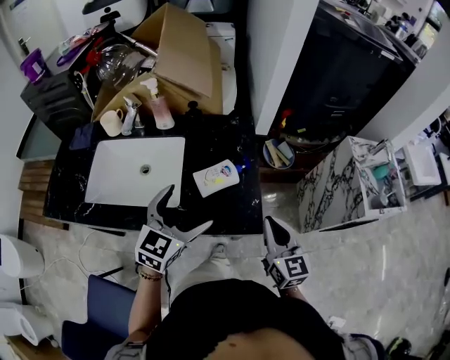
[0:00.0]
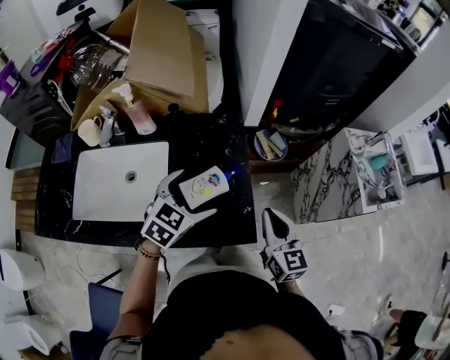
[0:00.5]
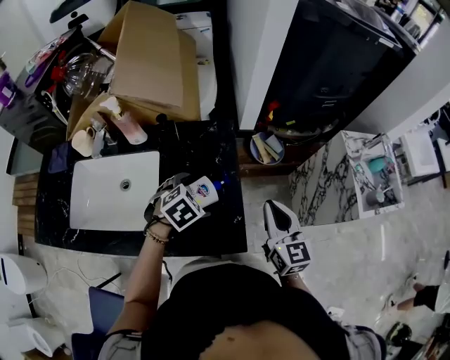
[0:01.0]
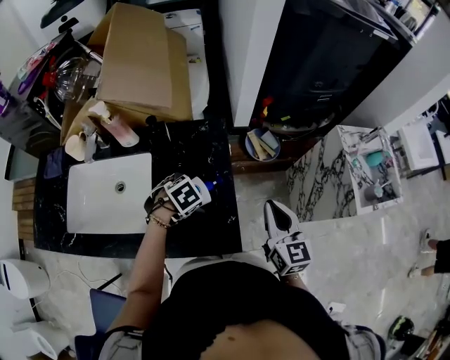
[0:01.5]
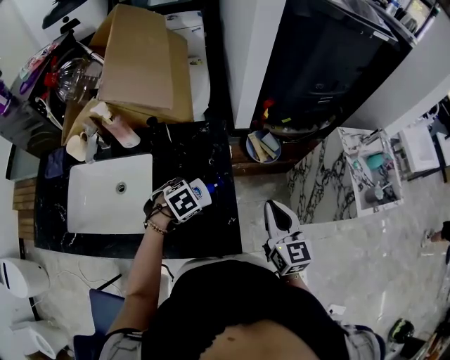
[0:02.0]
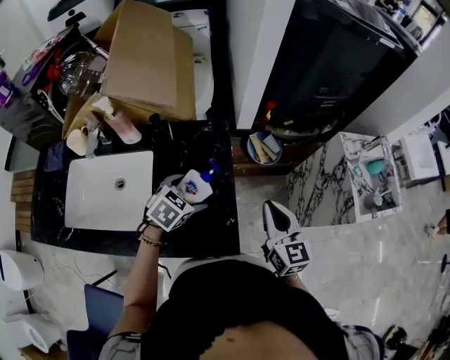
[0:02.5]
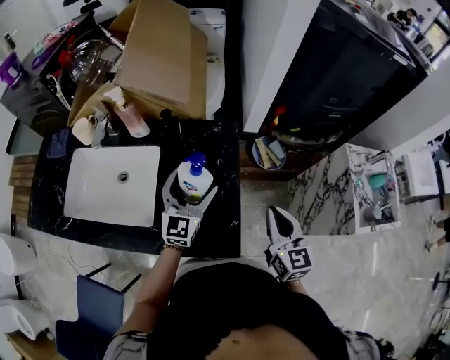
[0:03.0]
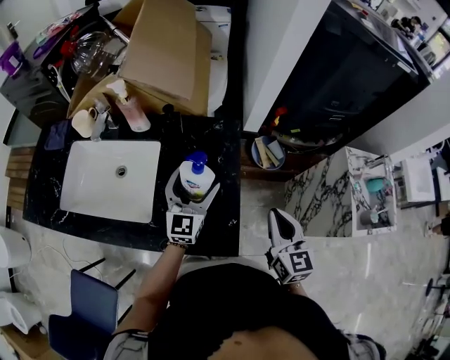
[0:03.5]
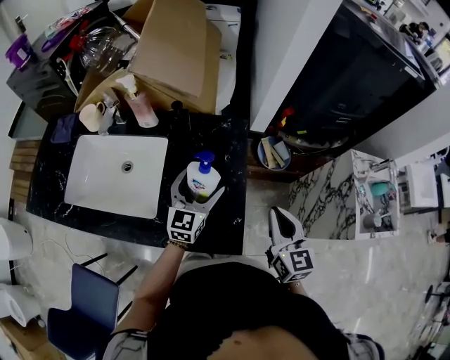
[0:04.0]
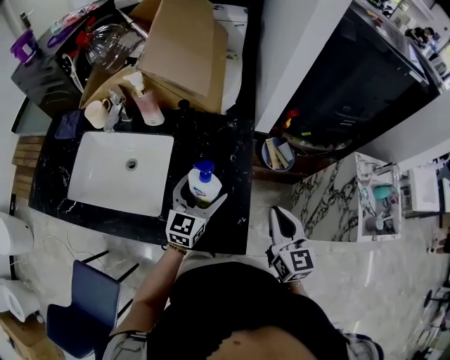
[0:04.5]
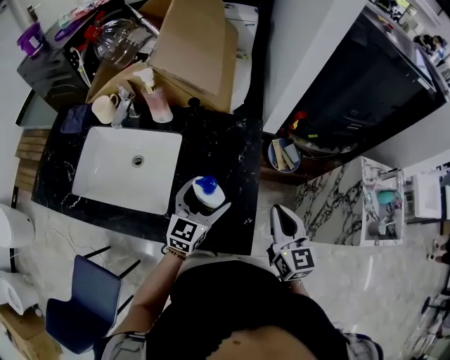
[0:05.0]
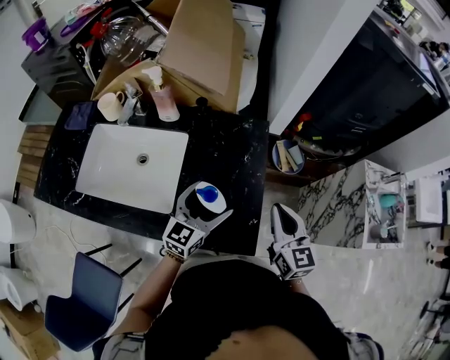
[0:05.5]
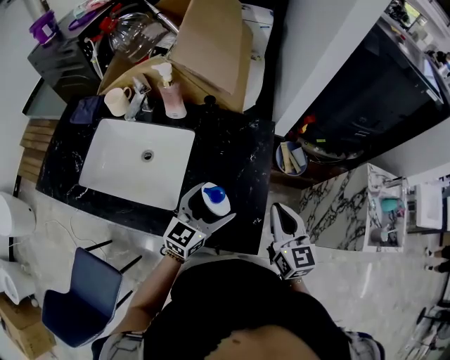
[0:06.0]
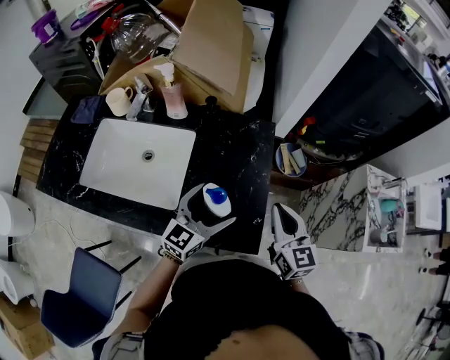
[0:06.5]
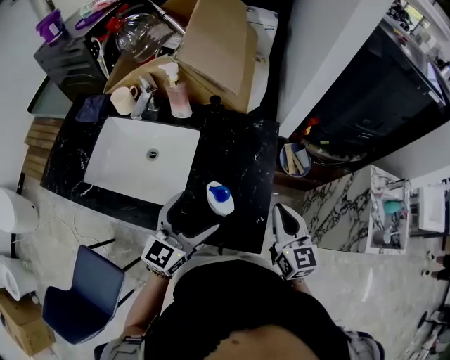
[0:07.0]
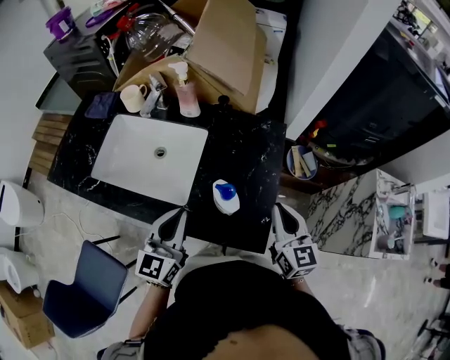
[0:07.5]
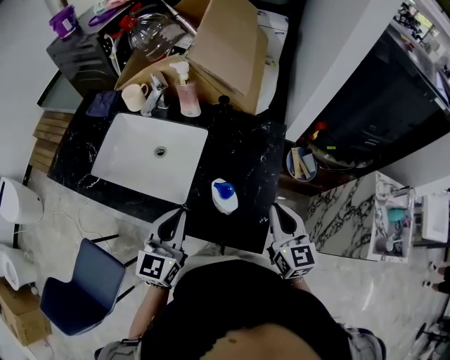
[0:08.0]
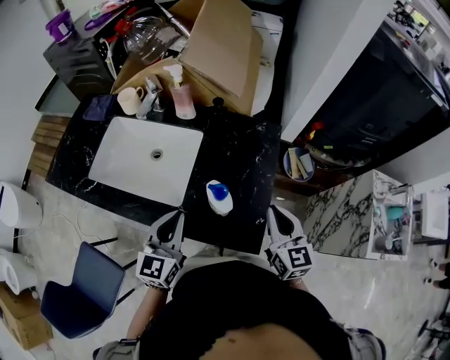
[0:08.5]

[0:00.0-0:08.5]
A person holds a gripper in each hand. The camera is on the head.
0:00.0 to 0:02.0: The left gripper is displaced downward by roughly 20 cm, and points its fingers about 60 degrees further downward; the right gripper moves approximately 15 cm.
0:02.0 to 0:04.0: The left gripper travels upward by roughly 10 cm, and points its fingers some 70 degrees further upward.
0:04.0 to 0:06.5: The right gripper heads to the left, covering roughly 5 cm. Meanwhile the left gripper heads backward, covering about 10 cm.
0:06.5 to 0:08.5: The left gripper heads to the left and backward, covering some 15 cm, changes its angle by some 30 degrees, and closes.

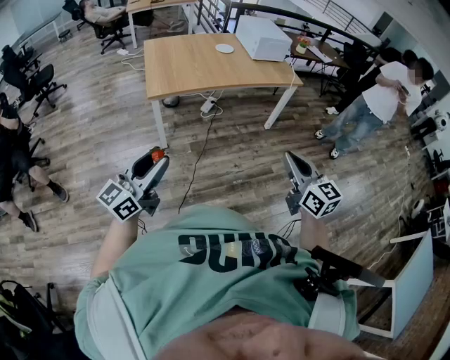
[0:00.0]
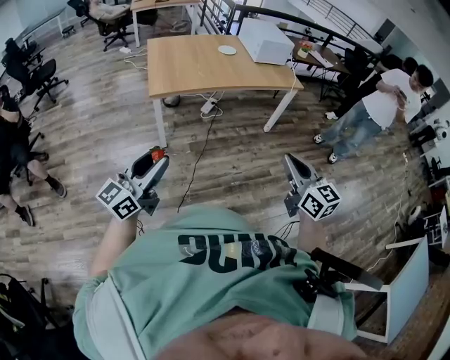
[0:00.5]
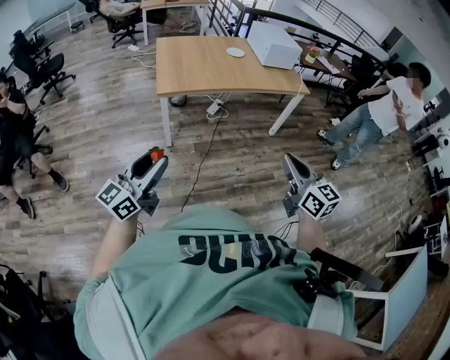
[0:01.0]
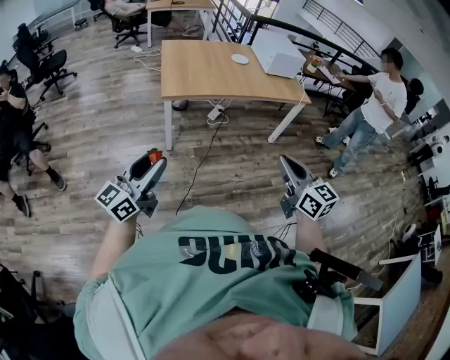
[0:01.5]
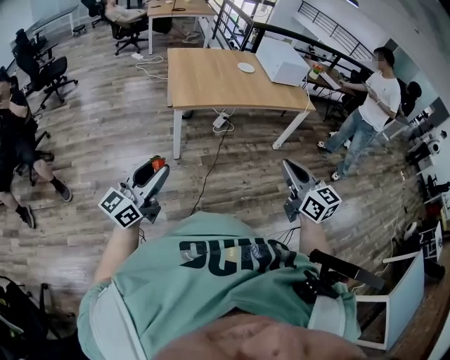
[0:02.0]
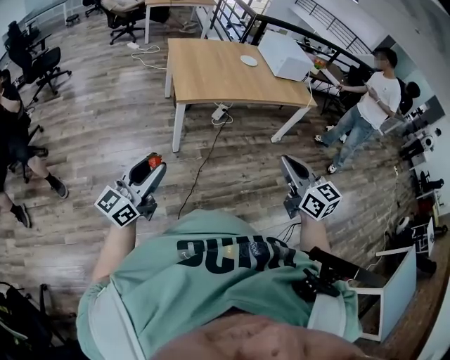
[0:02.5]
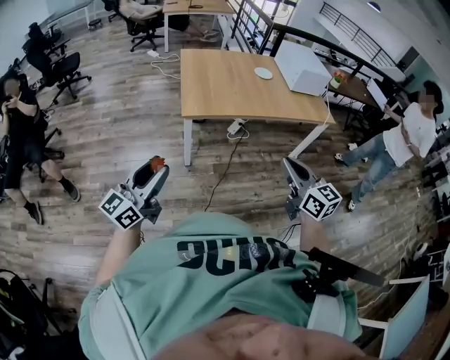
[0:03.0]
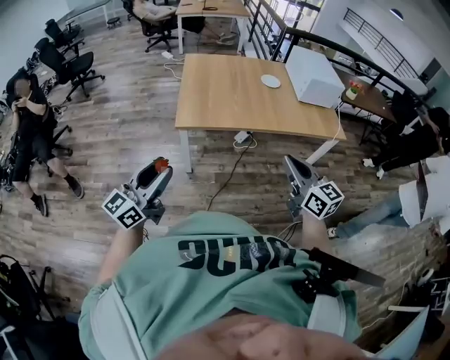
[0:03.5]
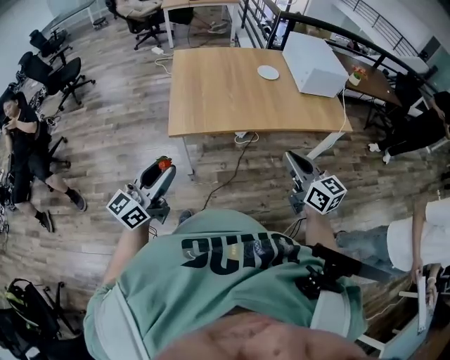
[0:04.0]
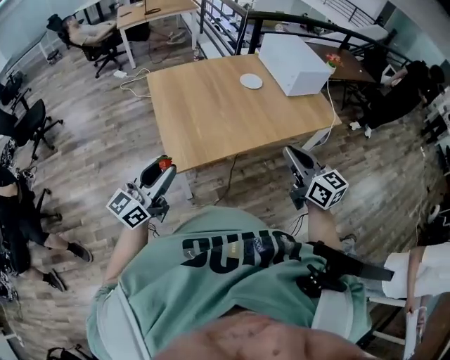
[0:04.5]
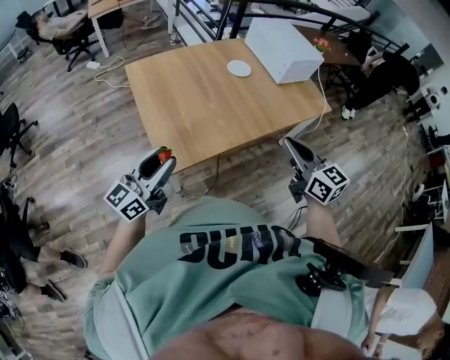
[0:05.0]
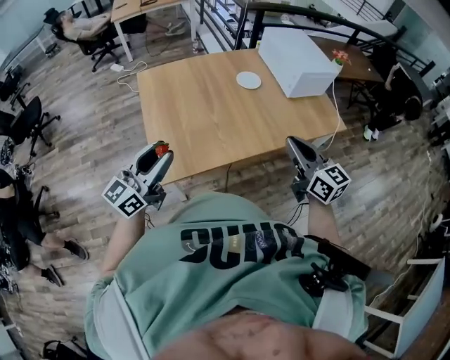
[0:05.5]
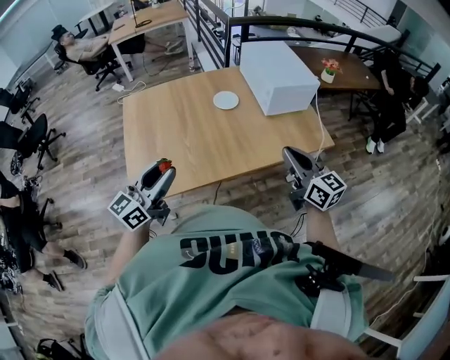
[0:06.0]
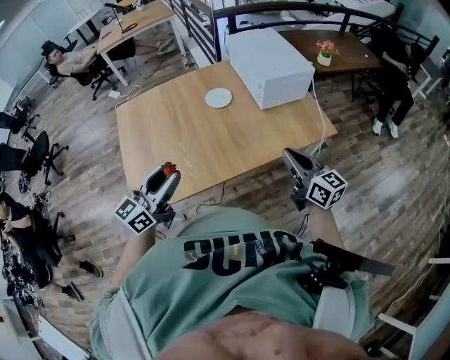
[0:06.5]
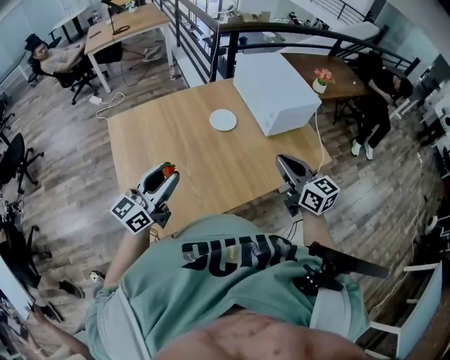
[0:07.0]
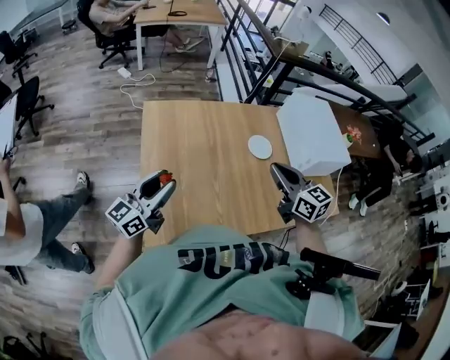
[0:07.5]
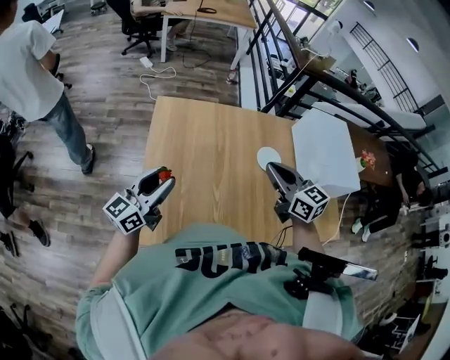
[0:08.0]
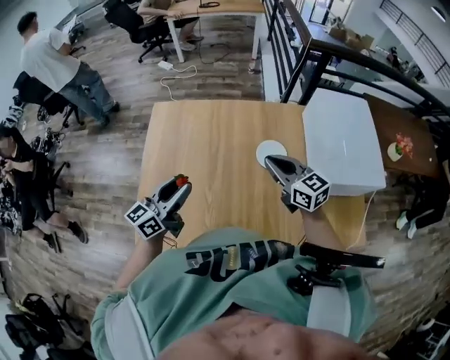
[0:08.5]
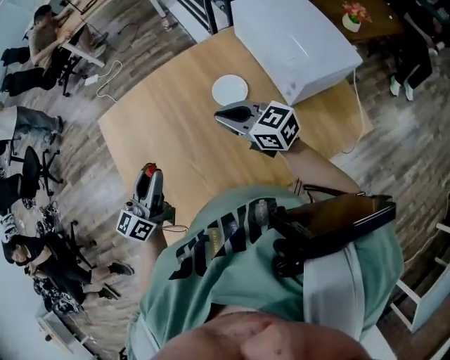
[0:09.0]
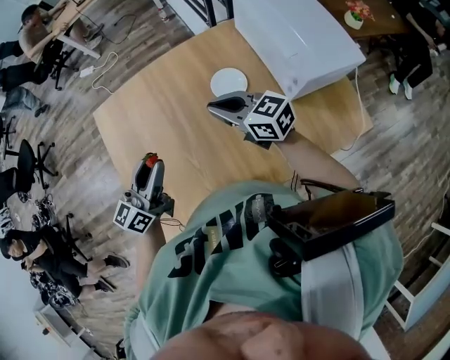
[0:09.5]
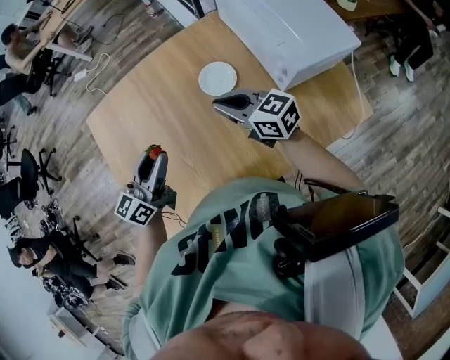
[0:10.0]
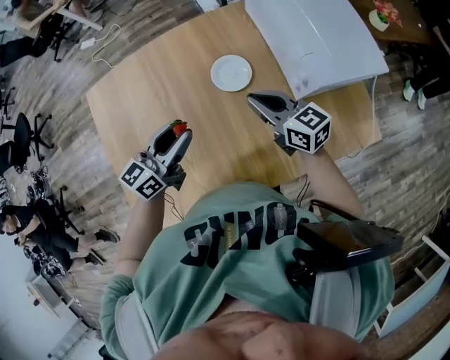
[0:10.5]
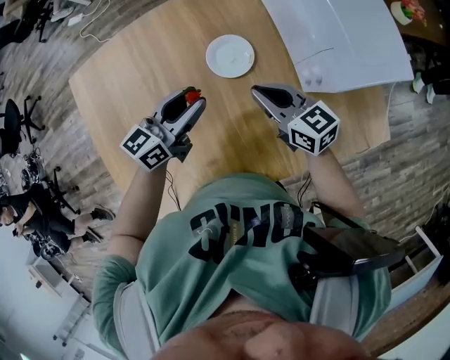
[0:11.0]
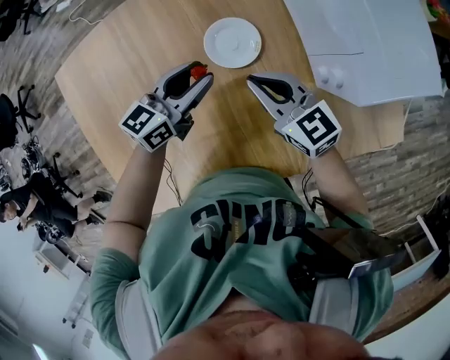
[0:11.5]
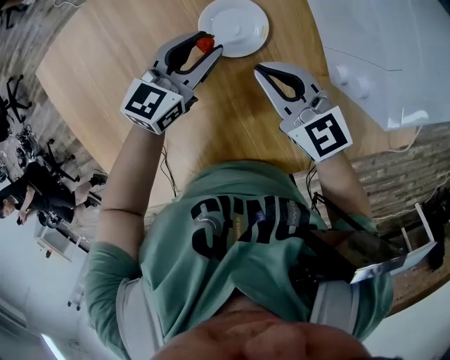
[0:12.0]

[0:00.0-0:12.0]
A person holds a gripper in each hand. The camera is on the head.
0:00.0 to 0:02.0: Both grippers travel together to the left, some 15 cm.
0:02.0 to 0:04.0: The grippers both shift forward by some 35 cm.
0:04.0 to 0:06.0: The right gripper is displaced forward and to the right by some 30 cm. Meanwhile the left gripper heads forward, covering some 35 cm.
0:06.0 to 0:08.0: The two grippers go about 40 cm to the left and forward. The right gripper turns by roughly 30 degrees.
0:08.0 to 0:10.0: The right gripper goes roughly 20 cm to the right and downward, while the left gripper travels to the right by about 25 cm.
0:10.0 to 0:12.0: The right gripper is displaced downward and forward by some 20 cm. Meanwhile the left gripper moves downward, forward and to the right, approximately 35 cm, and rotates about 30 degrees.

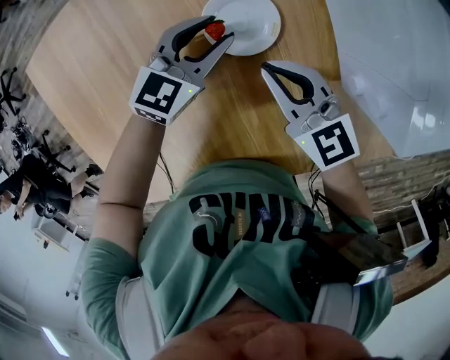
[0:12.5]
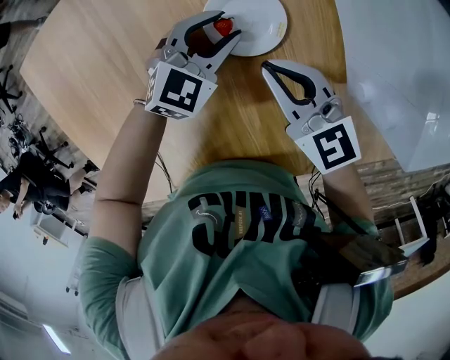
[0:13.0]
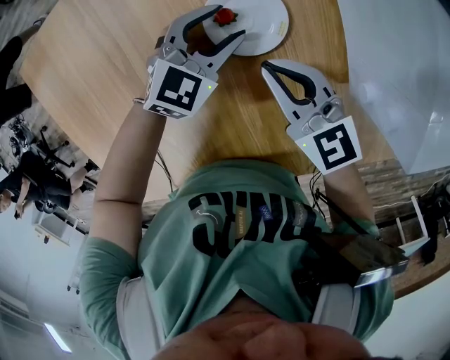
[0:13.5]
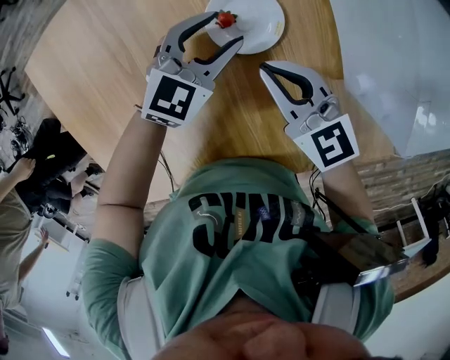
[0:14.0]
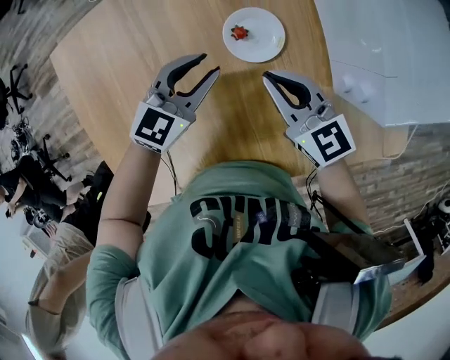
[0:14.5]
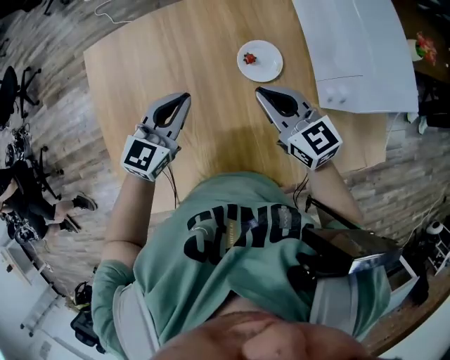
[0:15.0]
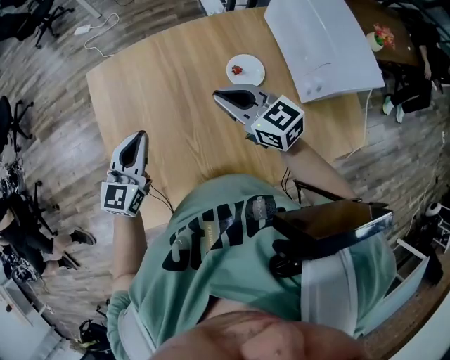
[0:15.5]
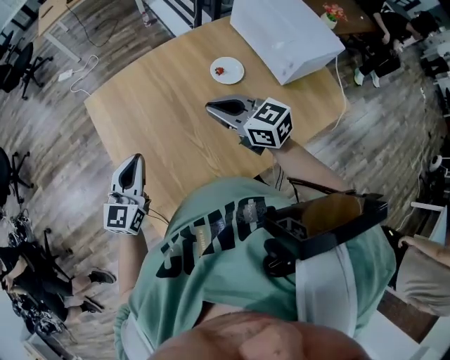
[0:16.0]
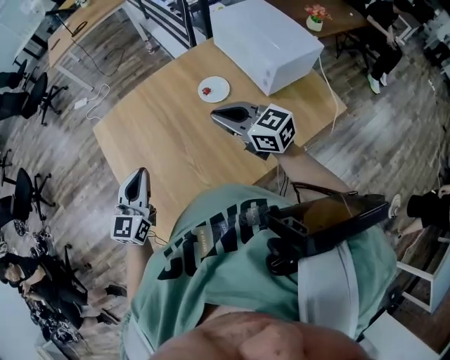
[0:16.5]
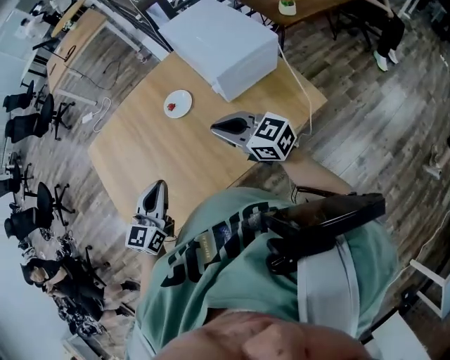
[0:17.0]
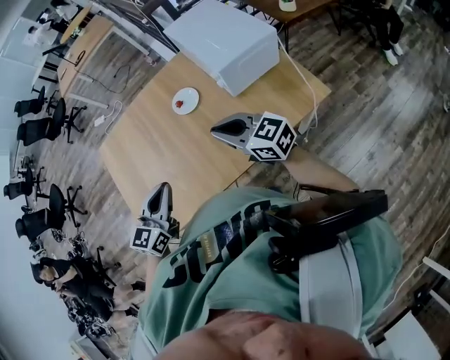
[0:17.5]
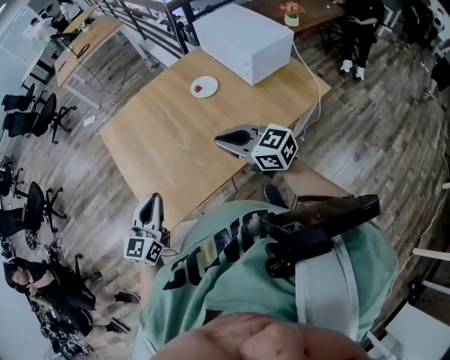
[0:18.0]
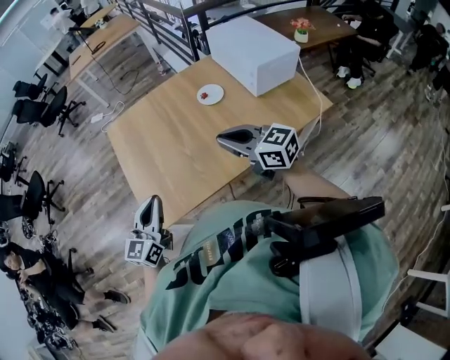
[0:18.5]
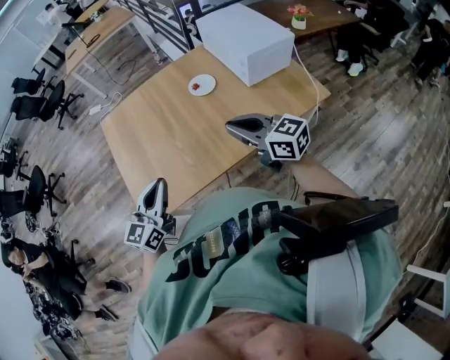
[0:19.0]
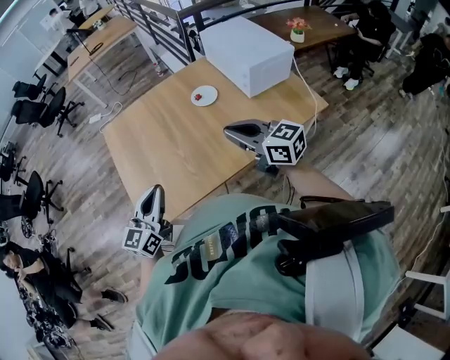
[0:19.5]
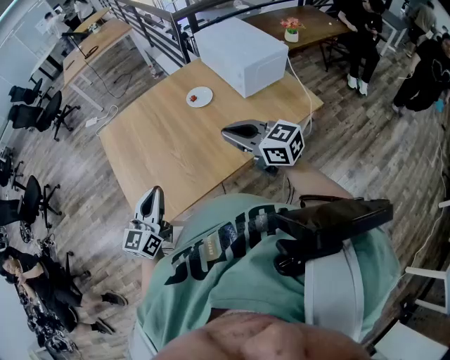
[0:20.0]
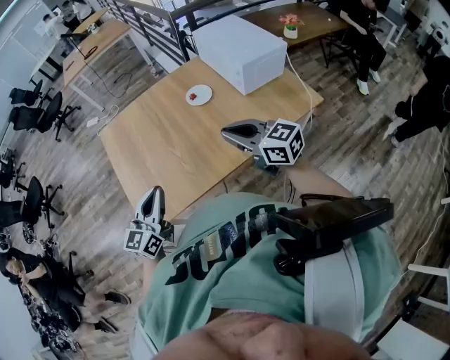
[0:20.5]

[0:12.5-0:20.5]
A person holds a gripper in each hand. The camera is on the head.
0:12.5 to 0:14.5: The right gripper travels upward by roughly 5 cm. Meanwhile the left gripper travels upward, backward and to the left by roughly 10 cm.
0:14.5 to 0:16.5: The right gripper heads upward, backward and to the left, covering some 30 cm; the left gripper travels backward, upward and to the left by about 40 cm, turns by some 20 degrees, and closes its fingers.
0:16.5 to 0:18.5: Both grippers move backward, approximately 20 cm. The right gripper travels to the right and back again, about 20 cm each way. Meanwhile the left gripper travels to the right and back again, roughly 25 cm each way.
0:18.5 to 0:20.5: The two grippers go approximately 5 cm to the right.
